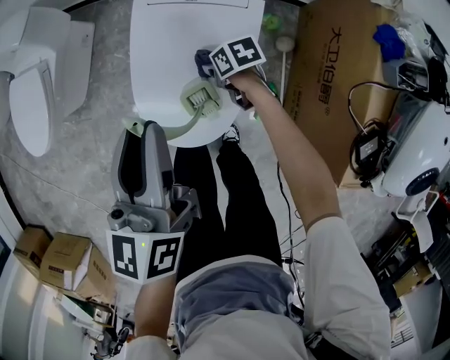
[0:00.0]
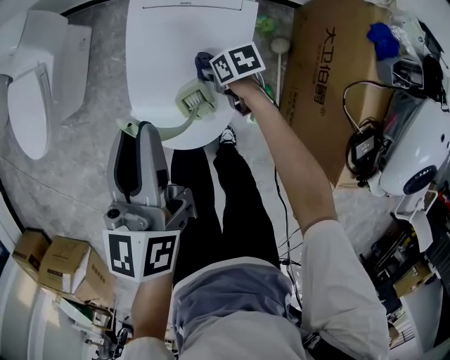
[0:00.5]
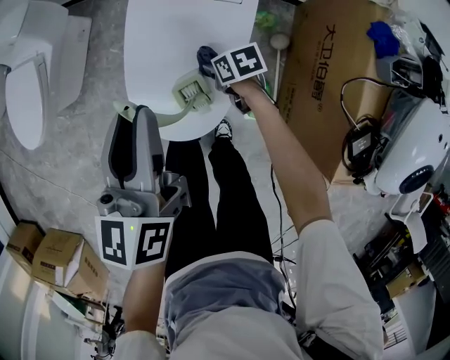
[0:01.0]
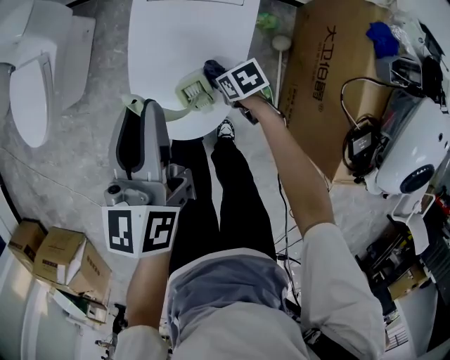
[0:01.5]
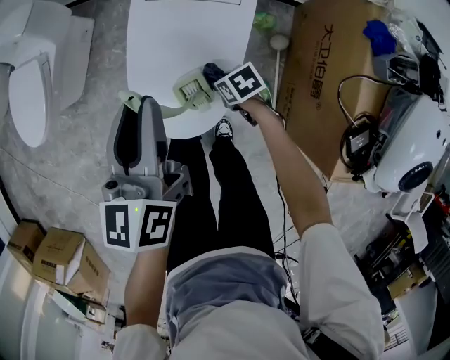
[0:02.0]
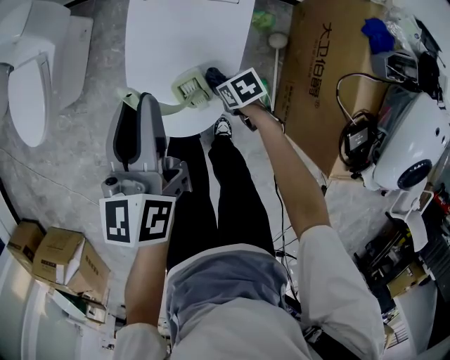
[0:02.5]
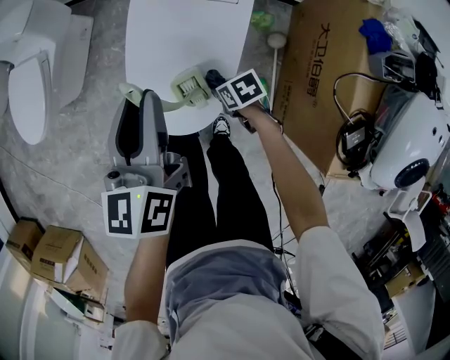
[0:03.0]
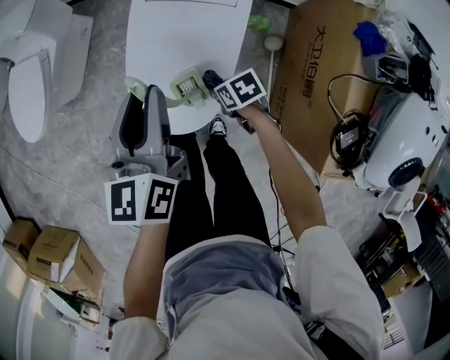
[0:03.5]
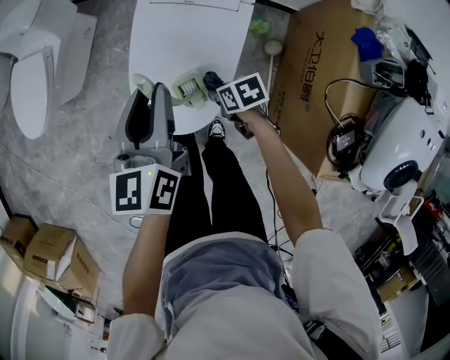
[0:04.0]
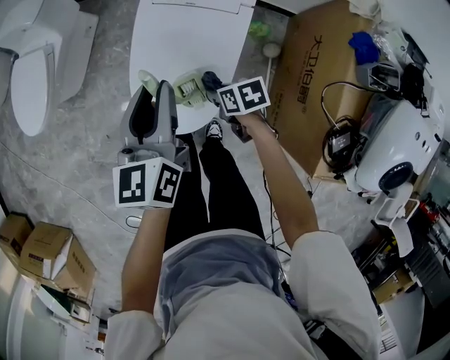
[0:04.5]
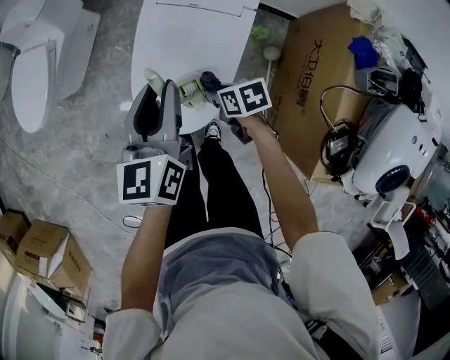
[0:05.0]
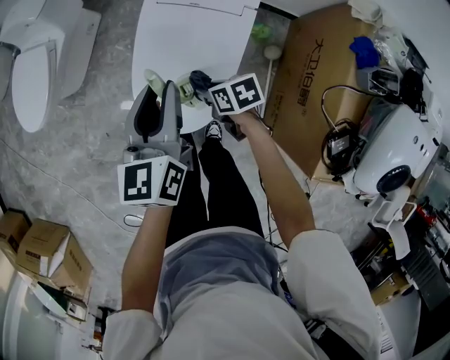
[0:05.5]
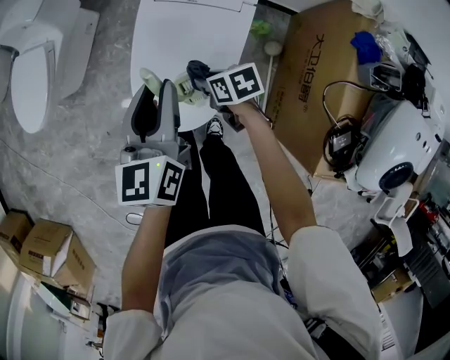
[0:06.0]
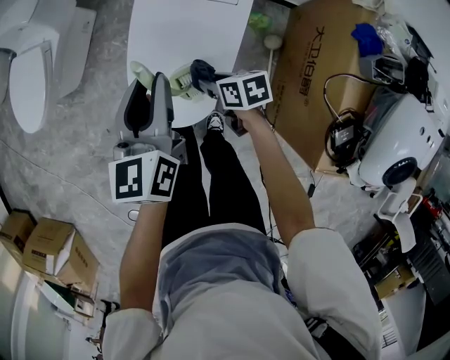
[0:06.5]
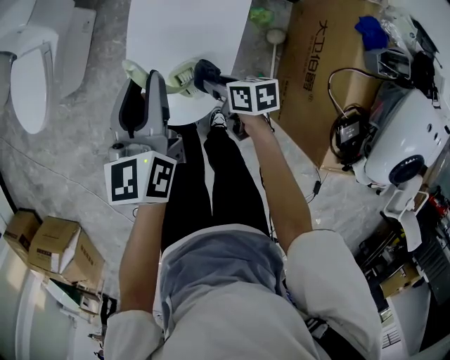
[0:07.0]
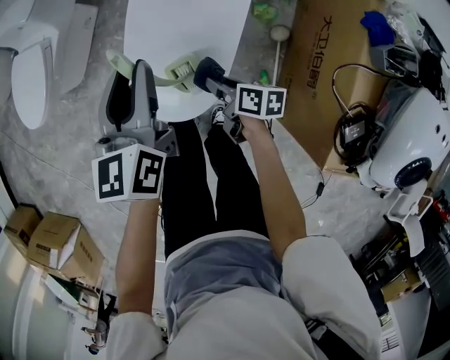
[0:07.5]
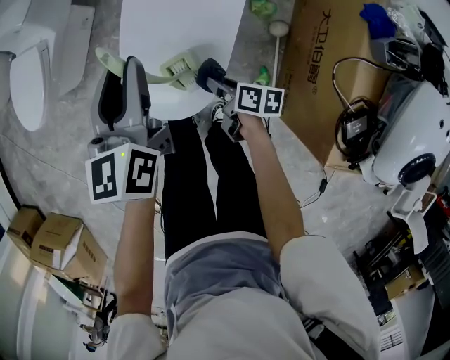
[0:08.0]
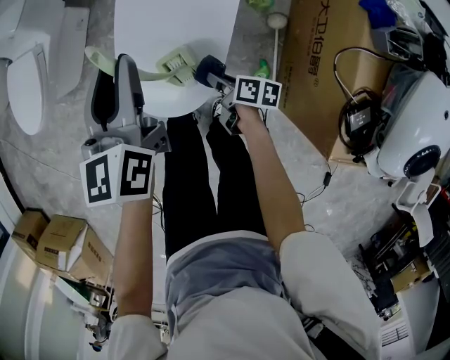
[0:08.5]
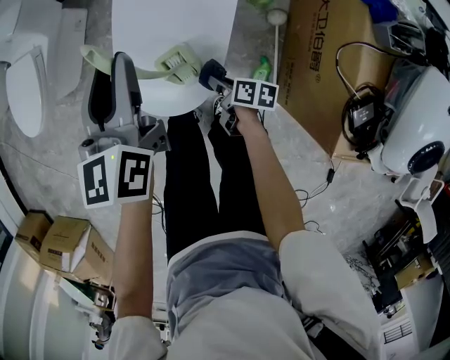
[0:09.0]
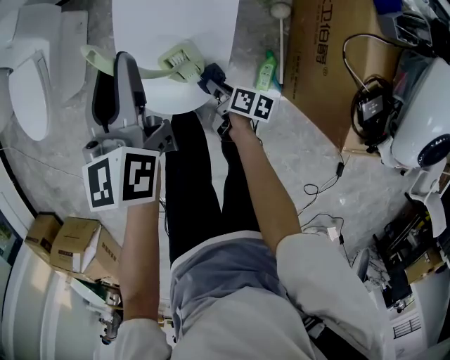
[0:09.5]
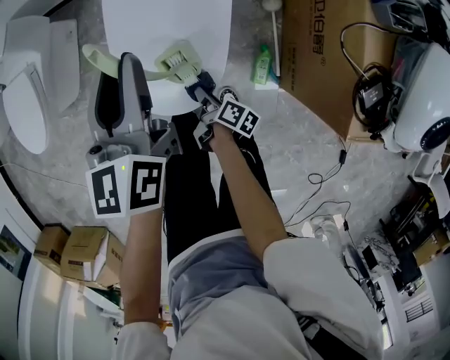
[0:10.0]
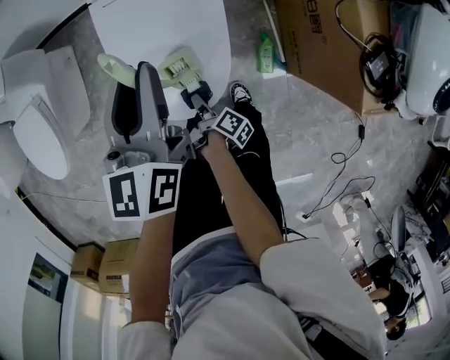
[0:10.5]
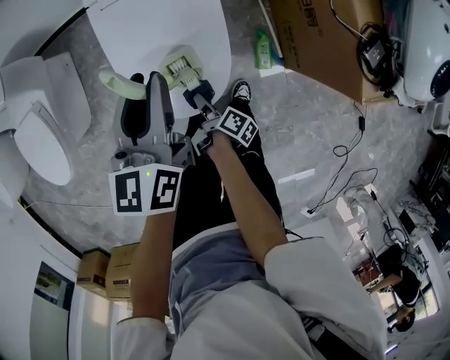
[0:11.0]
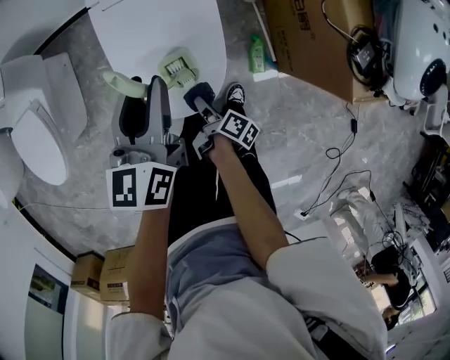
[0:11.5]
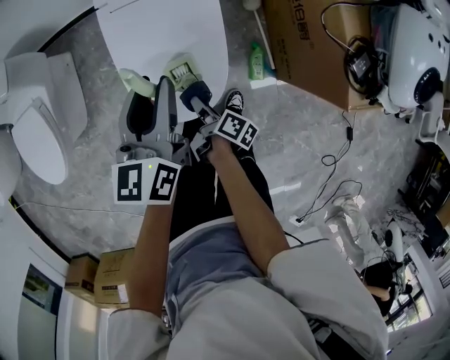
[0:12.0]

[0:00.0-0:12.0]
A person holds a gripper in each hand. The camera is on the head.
0:00.0 to 0:02.0: The right gripper goes roughly 10 cm backward.
0:02.0 to 0:04.0: The right gripper travels upward by approximately 5 cm.
0:04.0 to 0:06.0: The right gripper goes about 5 cm forward.
0:06.0 to 0:08.0: The right gripper goes some 10 cm backward and downward, and swivels some 40 degrees.
0:08.0 to 0:10.0: The right gripper moves to the left, downward and backward, about 10 cm, and rotates about 40 degrees.
0:10.0 to 0:12.0: The left gripper turns by roughly 20 degrees. The right gripper travels upward by about 10 cm.

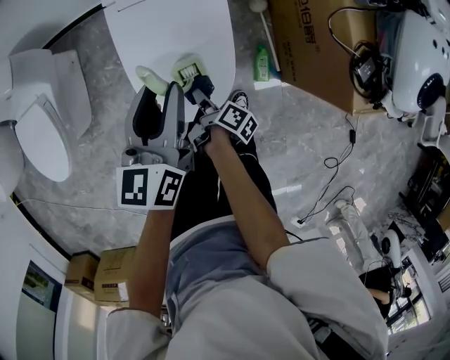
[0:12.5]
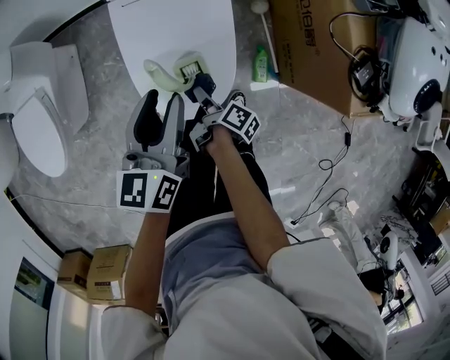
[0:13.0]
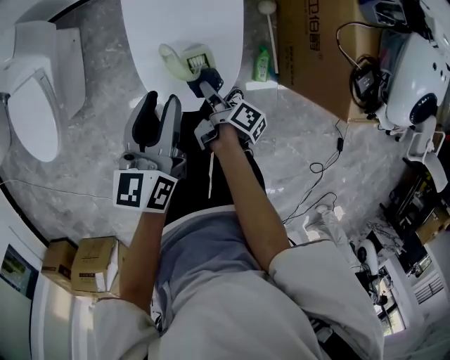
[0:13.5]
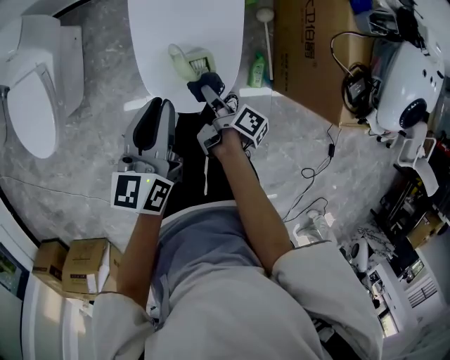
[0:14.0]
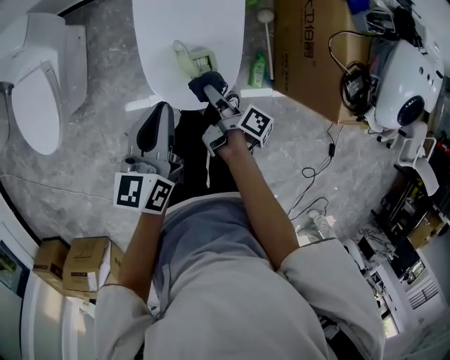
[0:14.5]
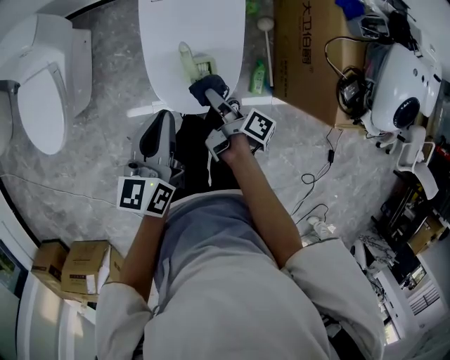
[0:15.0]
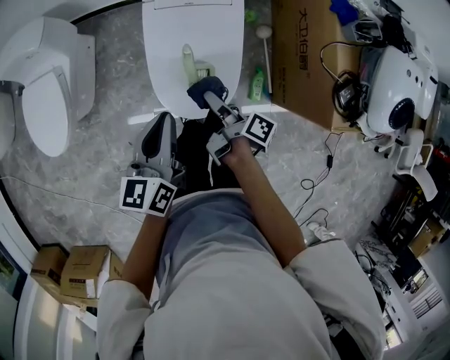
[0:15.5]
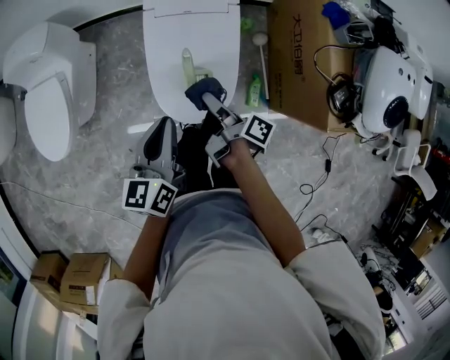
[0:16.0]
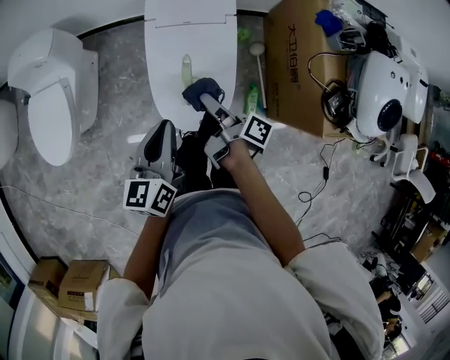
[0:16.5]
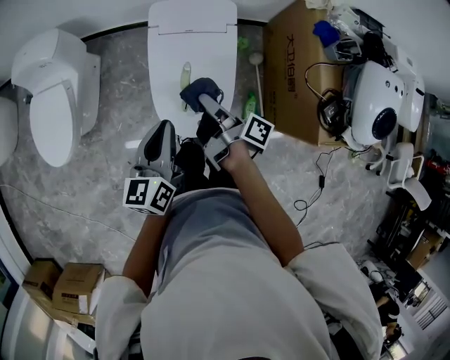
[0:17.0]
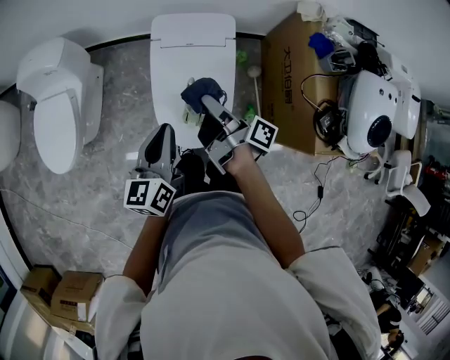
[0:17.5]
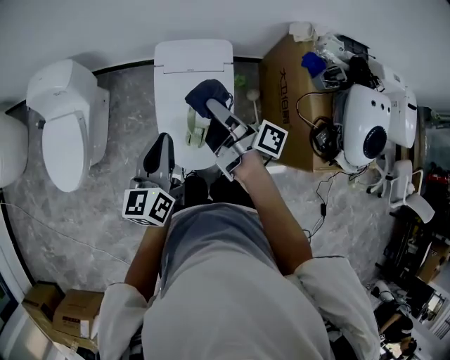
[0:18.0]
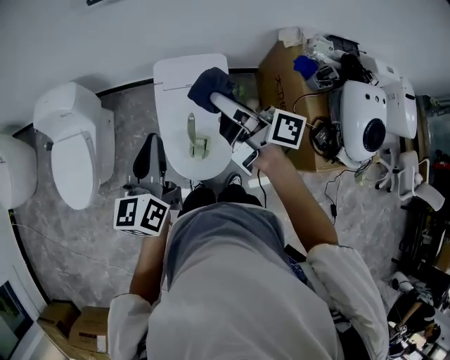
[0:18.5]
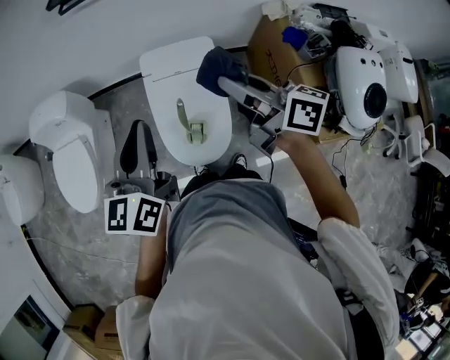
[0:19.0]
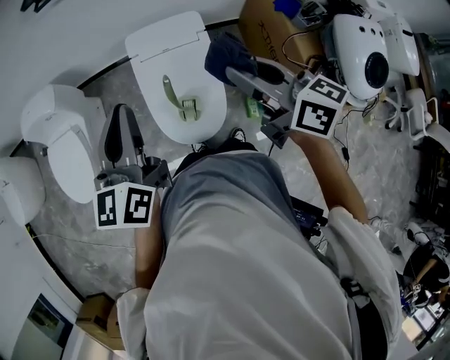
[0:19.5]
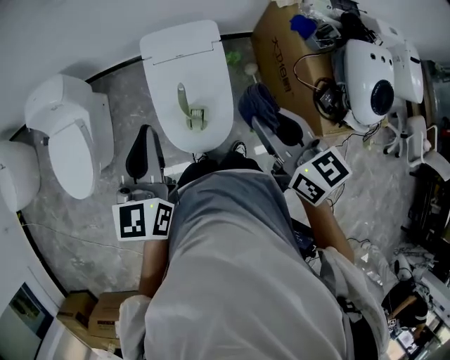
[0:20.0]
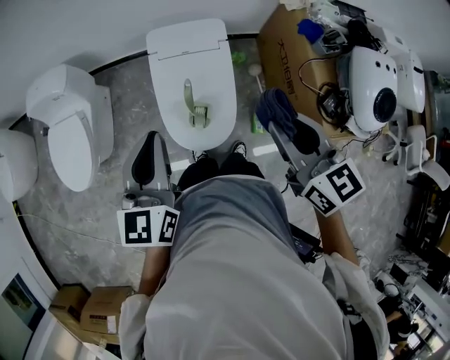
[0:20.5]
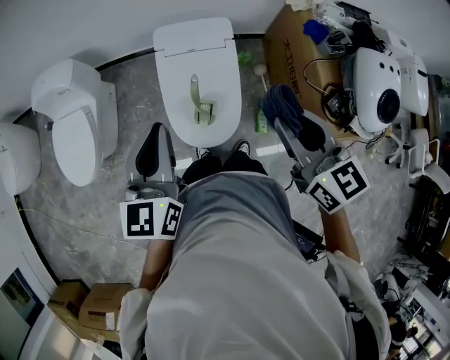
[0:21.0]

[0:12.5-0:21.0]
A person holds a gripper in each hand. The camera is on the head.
0:12.5 to 0:14.5: The right gripper travels upward by some 10 cm, while the left gripper is displaced to the left and backward by some 10 cm.
0:14.5 to 0:16.5: The right gripper goes roughly 15 cm upward. Meanwhile the left gripper heads upward, covering about 5 cm.
0:16.5 to 0:19.0: Both grippers move upward, some 25 cm. The right gripper twists some 50 degrees counterclockwise, seen from behind.
0:19.0 to 0:21.0: The left gripper goes about 5 cm backward. The right gripper moves backward, about 10 cm, and turns by roughly 40 degrees.

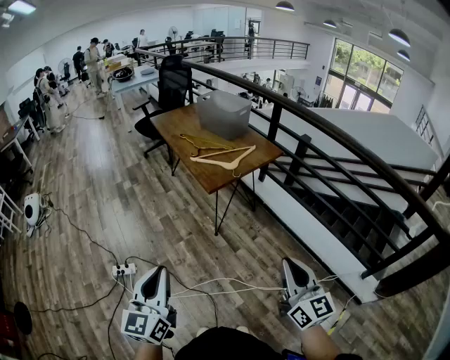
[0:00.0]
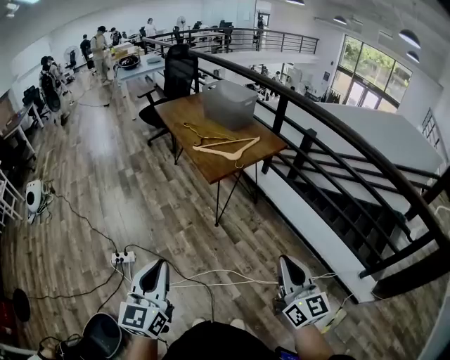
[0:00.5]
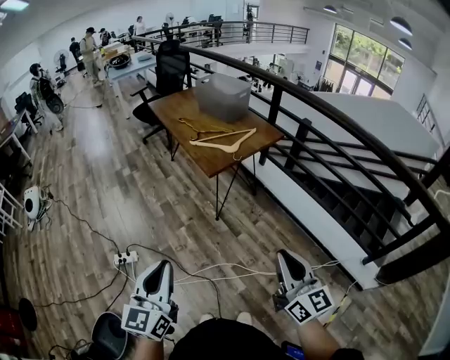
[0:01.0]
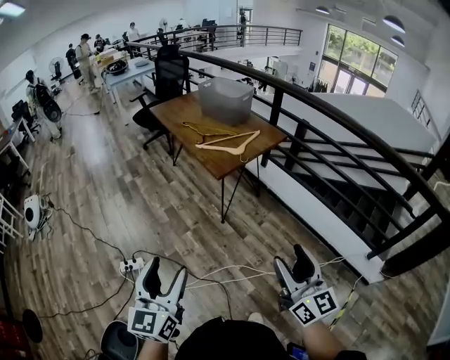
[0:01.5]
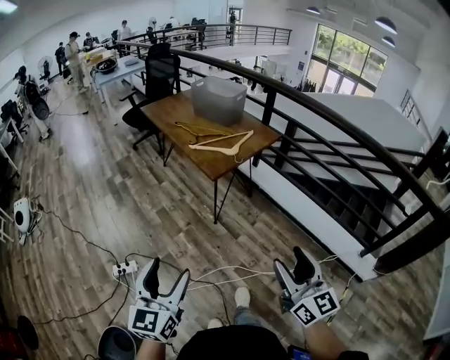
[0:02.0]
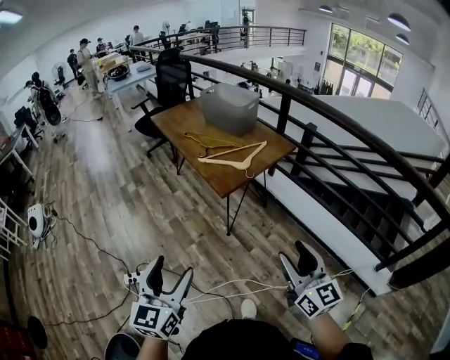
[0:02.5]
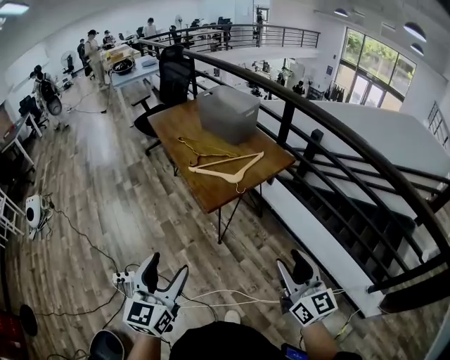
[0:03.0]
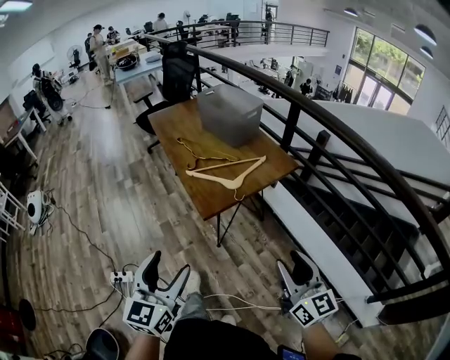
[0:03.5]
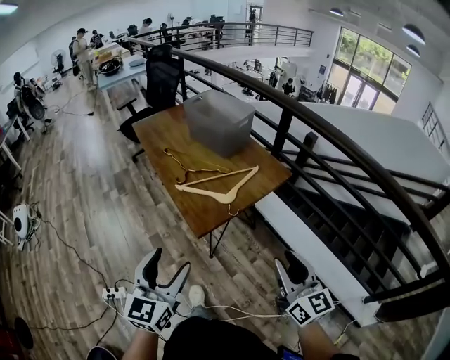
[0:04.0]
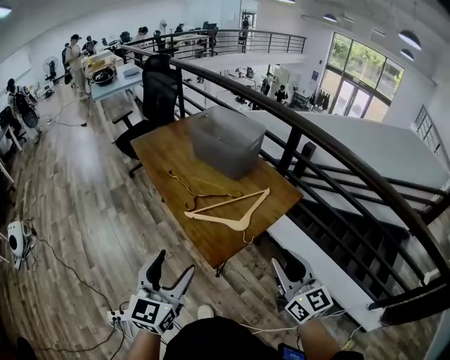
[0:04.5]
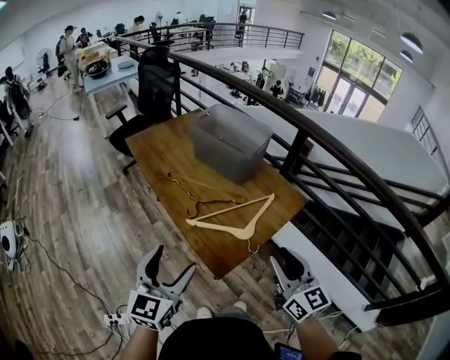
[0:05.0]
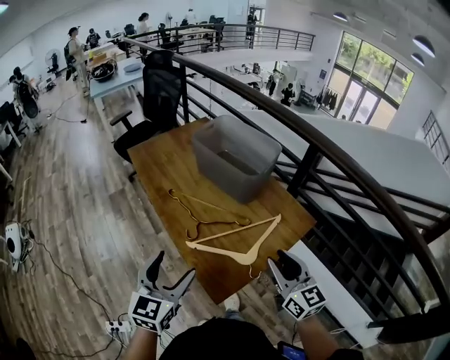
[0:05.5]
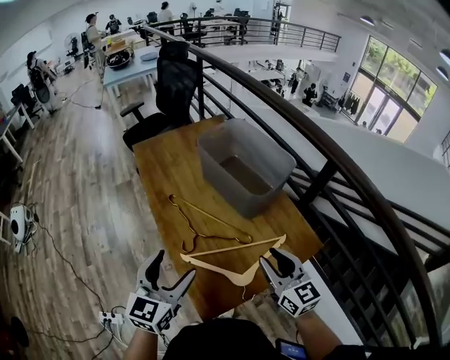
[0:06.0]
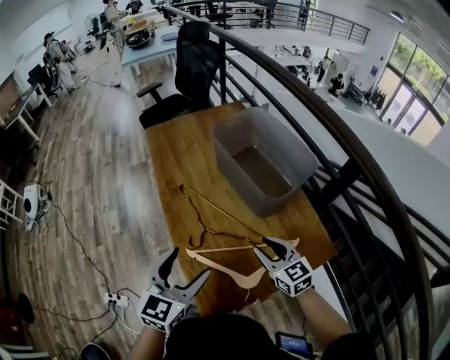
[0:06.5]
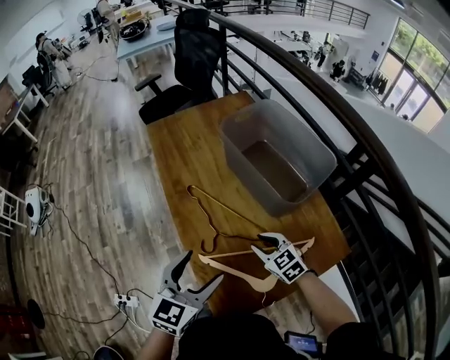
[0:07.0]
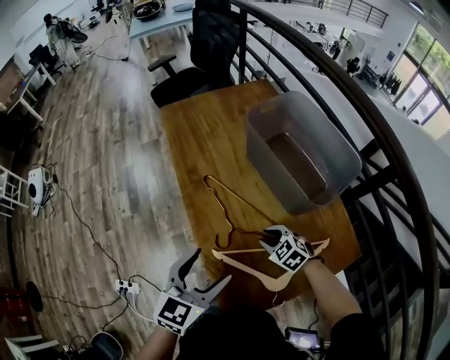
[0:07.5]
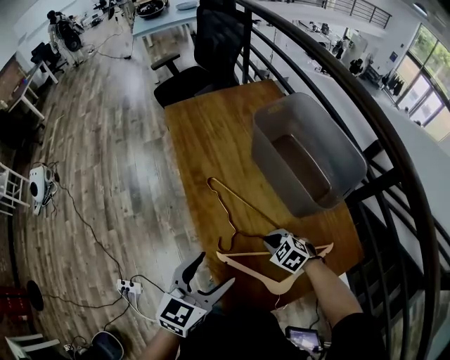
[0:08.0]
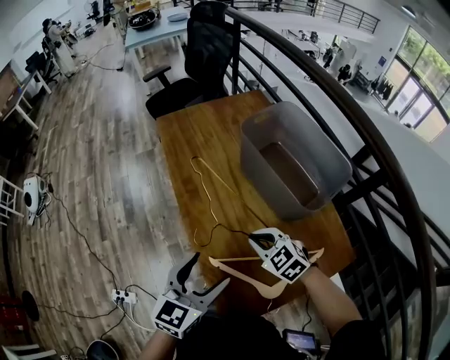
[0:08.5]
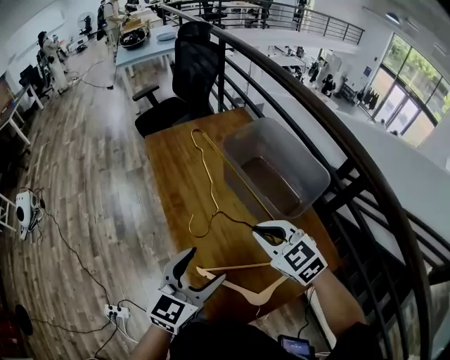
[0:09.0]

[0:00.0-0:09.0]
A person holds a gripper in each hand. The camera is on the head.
0:00.0 to 0:02.0: The right gripper is displaced to the left by approximately 10 cm, and opens. Meanwhile the left gripper moves to the left, approximately 5 cm, and opens its fingers.
0:02.0 to 0:04.5: Both grippers are carried forward, roughly 40 cm. The right gripper closes up.
0:04.5 to 0:07.0: The left gripper moves forward, approximately 25 cm, while the right gripper goes approximately 40 cm forward and downward, and points its fingers about 40 degrees further downward.
0:07.0 to 0:09.0: The left gripper shifts by approximately 5 cm; the right gripper shifts approximately 15 cm upward, and closes.
